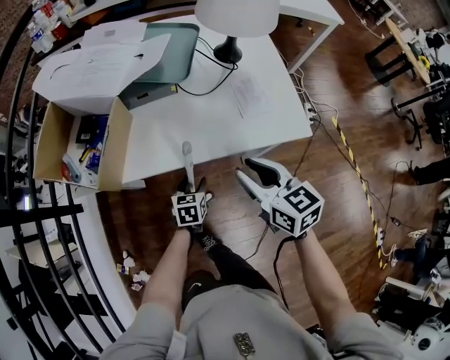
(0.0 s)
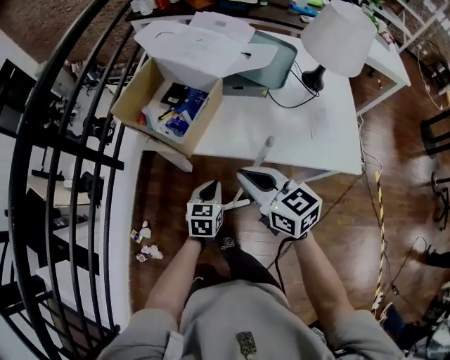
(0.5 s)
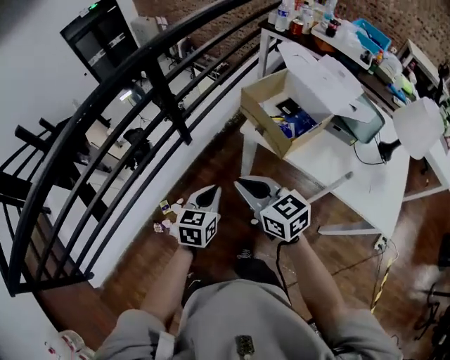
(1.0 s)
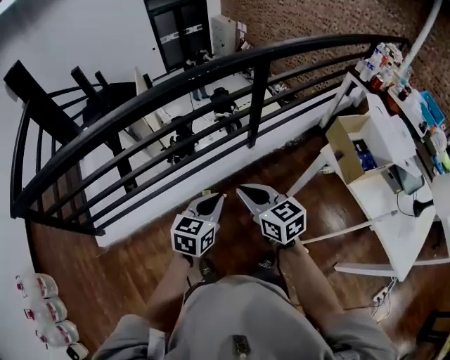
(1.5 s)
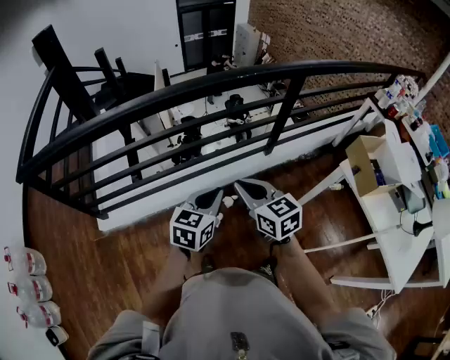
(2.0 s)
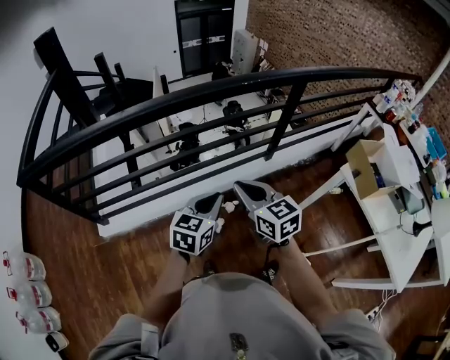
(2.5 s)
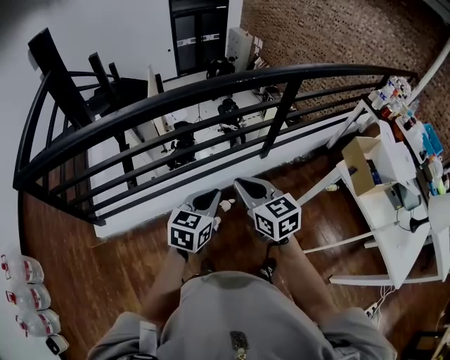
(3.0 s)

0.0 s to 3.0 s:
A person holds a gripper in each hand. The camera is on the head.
0.0 to 1.5 s: Both grippers are carried about 70 cm. The right gripper swivels about 70 degrees, and closes its fingers, while the left gripper changes its angle by about 60 degrees, and closes.
1.5 to 3.0 s: The grippers both shift to the left by about 15 cm.

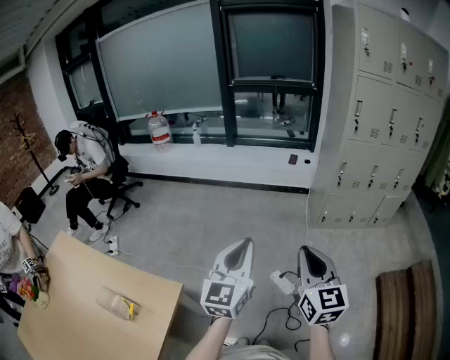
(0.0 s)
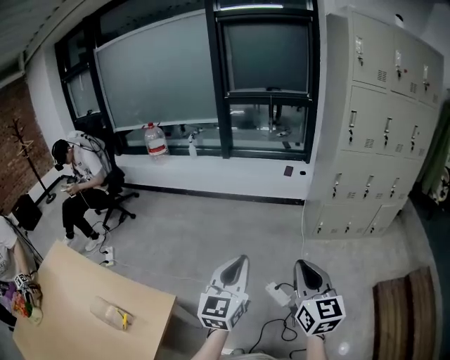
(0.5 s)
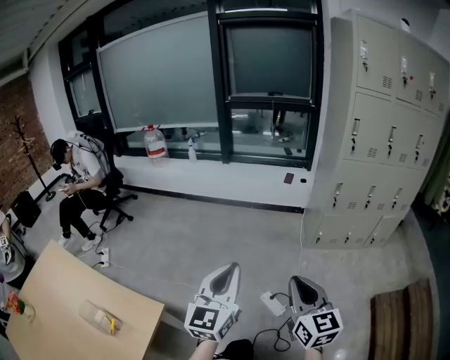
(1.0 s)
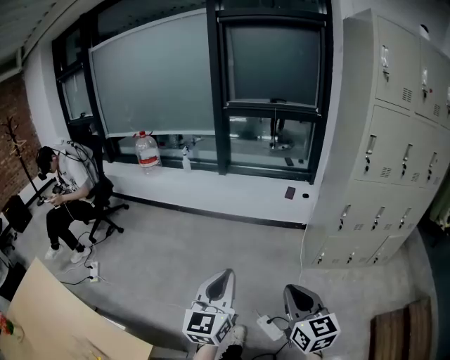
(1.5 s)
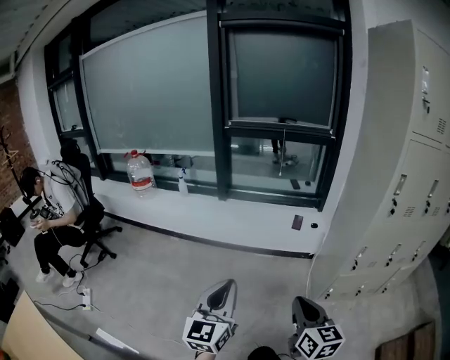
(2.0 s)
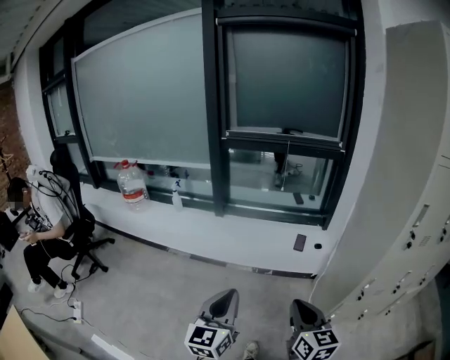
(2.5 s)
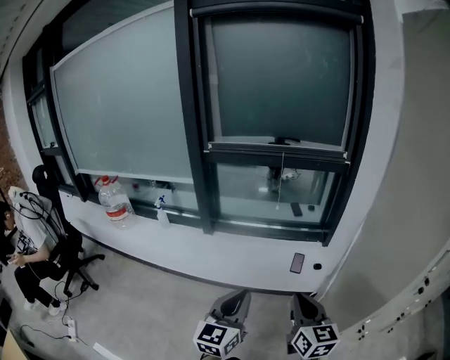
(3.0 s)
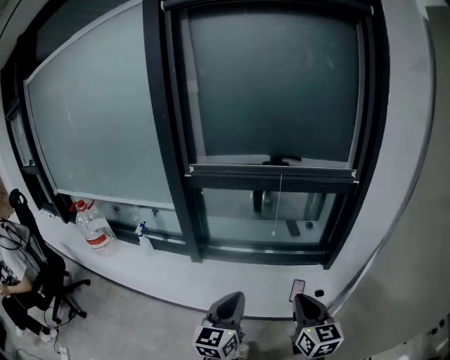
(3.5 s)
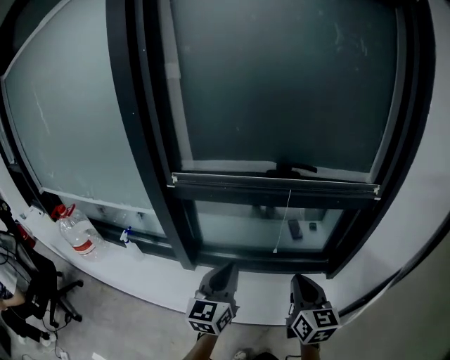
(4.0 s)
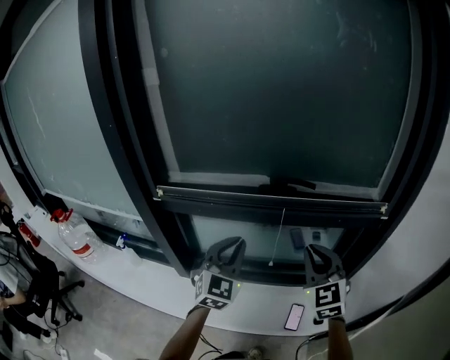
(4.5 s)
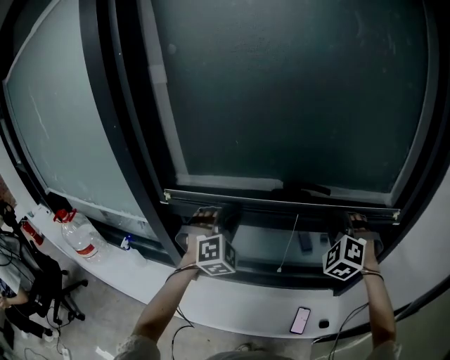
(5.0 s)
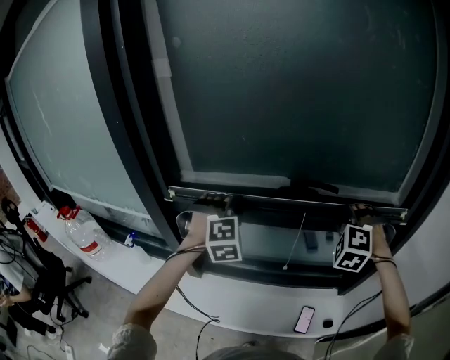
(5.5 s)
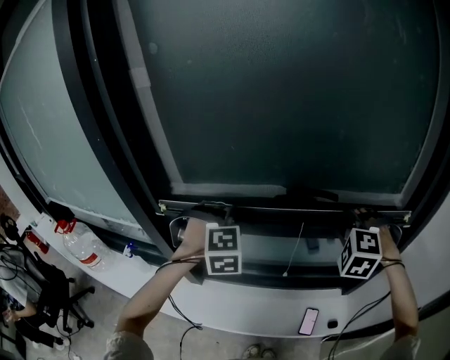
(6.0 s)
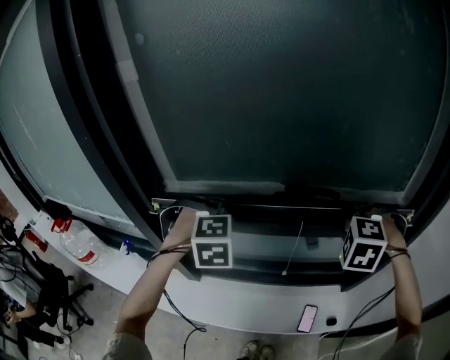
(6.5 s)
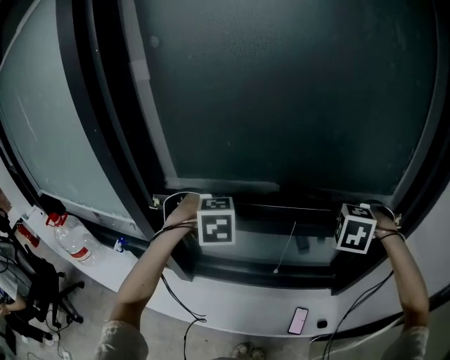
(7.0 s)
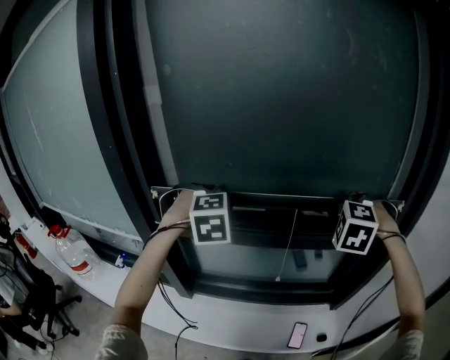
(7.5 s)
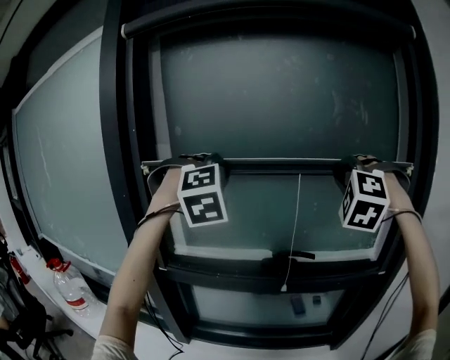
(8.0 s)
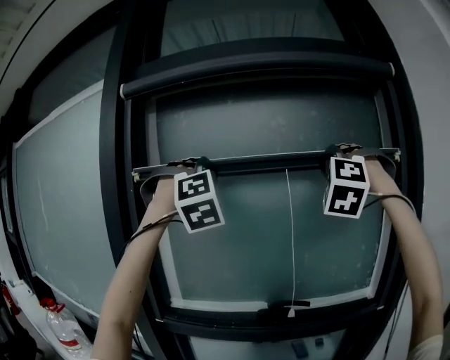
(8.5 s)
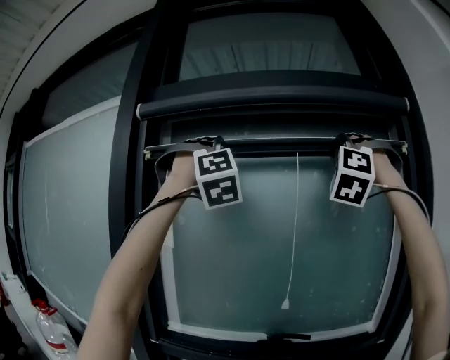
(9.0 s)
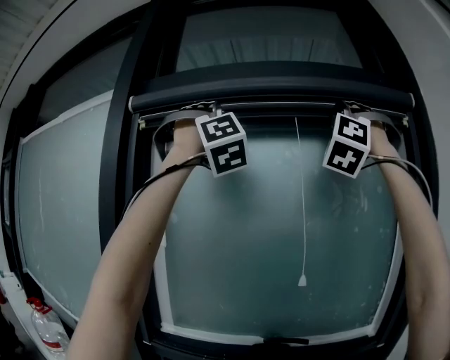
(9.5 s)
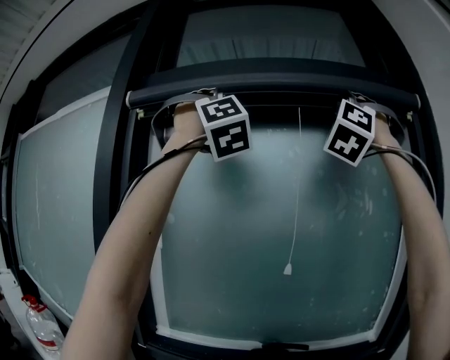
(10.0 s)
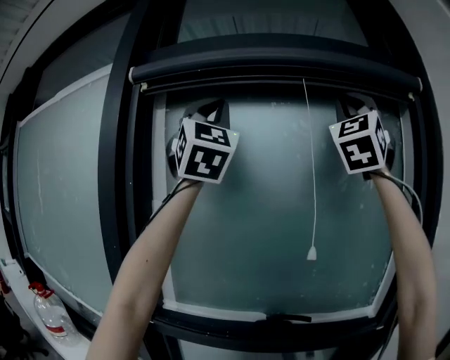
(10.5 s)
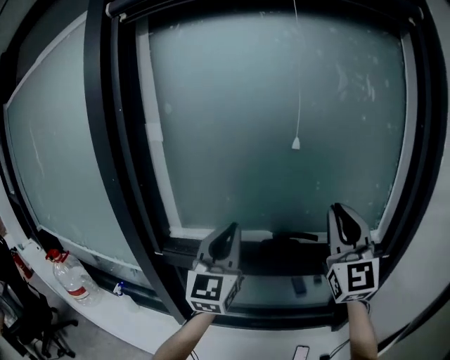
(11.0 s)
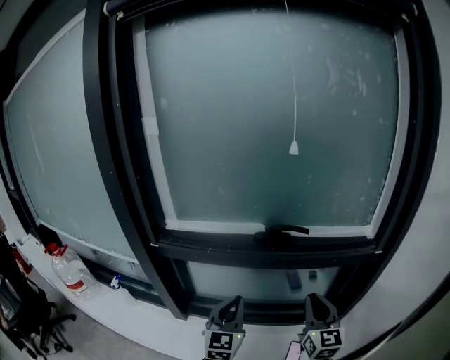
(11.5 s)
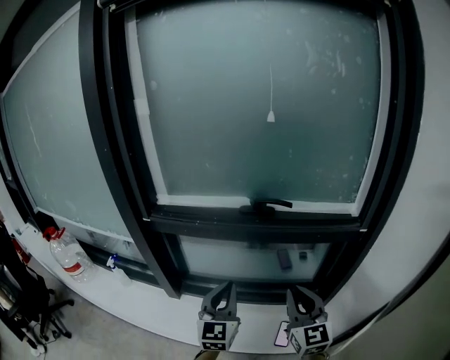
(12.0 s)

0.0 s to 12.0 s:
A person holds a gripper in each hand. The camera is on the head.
0.0 to 2.0 s: The pair of grippers is taken forward, some 40 cm.
2.0 to 4.0 s: Both grippers are carried forward, roughly 80 cm.
4.0 to 6.0 s: The two grippers go about 25 cm forward. The left gripper rotates around the line of its fingers by approximately 80 degrees, clockwise from behind; the right gripper twists some 80 degrees counterclockwise, seen from behind.
6.0 to 8.0 s: Both grippers travel together upward, about 35 cm. The left gripper turns by approximately 30 degrees, while the right gripper tips its fingers upward by approximately 30 degrees.
8.0 to 10.0 s: Both grippers move upward, some 40 cm. The left gripper points its fingers roughly 40 degrees further upward. The right gripper tilts its fingers roughly 40 degrees upward.
10.0 to 12.0 s: The two grippers go approximately 70 cm downward. The right gripper rolls clockwise, seen from behind, by roughly 80 degrees. The left gripper twists some 80 degrees counterclockwise, seen from behind.

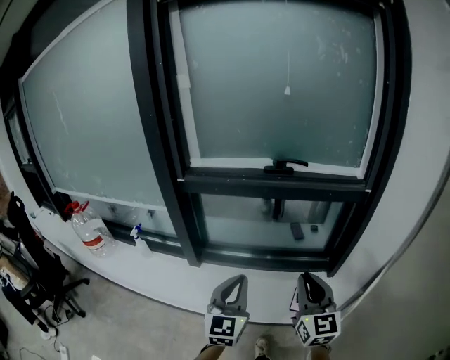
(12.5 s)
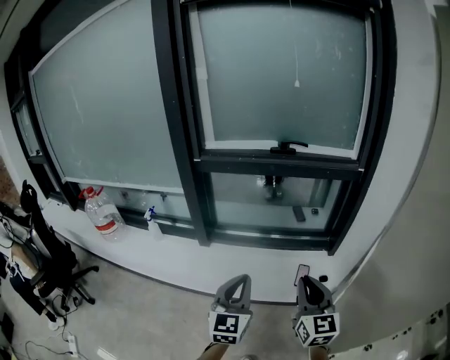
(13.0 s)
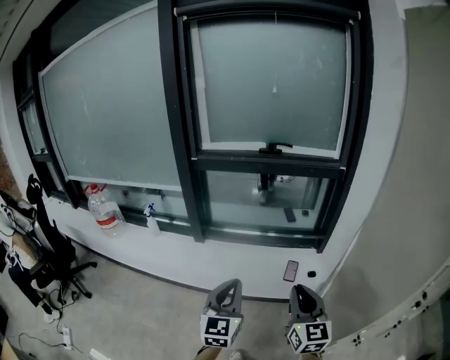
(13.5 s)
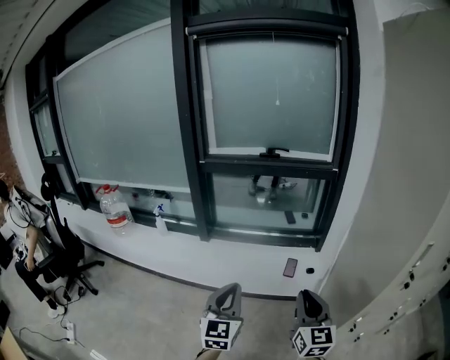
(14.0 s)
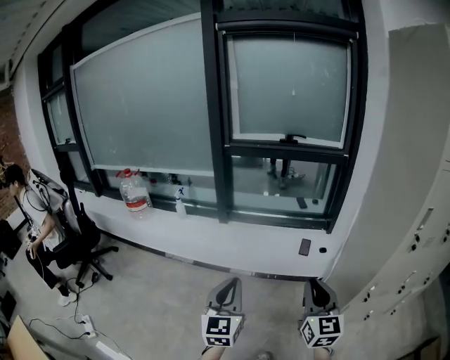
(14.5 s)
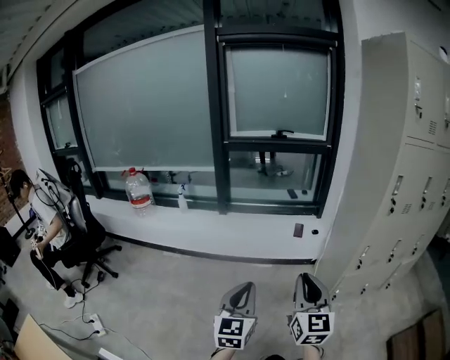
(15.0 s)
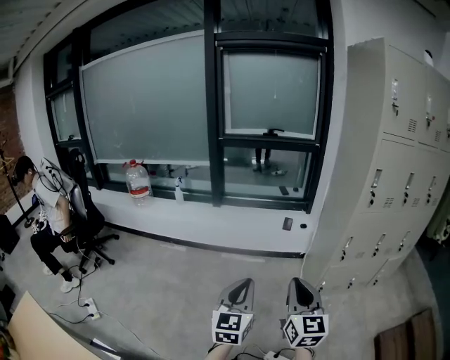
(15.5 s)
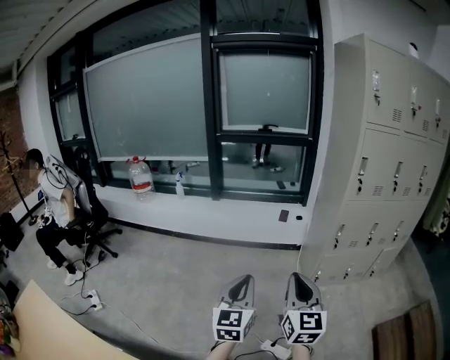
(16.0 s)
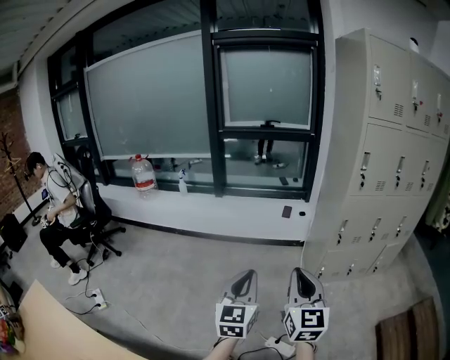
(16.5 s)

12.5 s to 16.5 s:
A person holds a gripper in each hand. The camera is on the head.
12.5 to 14.5 s: Both grippers are carried backward, about 50 cm.
14.5 to 16.5 s: The grippers both shift backward by about 40 cm.

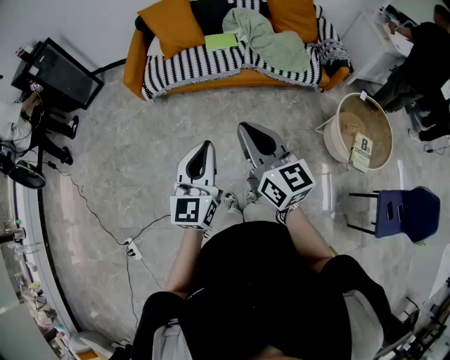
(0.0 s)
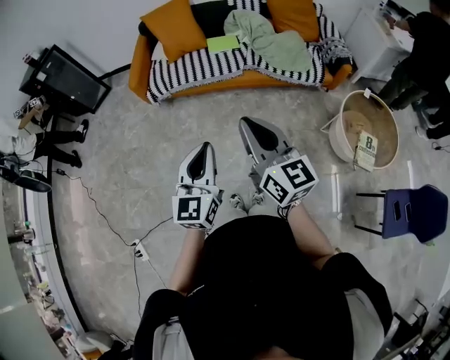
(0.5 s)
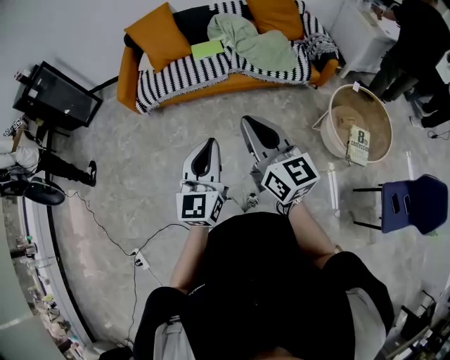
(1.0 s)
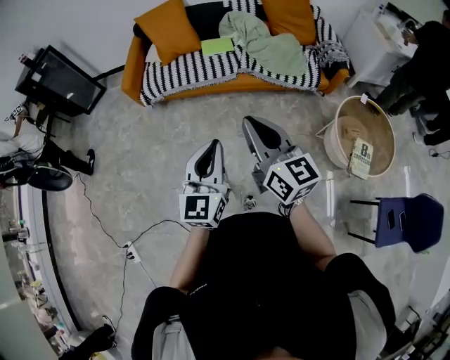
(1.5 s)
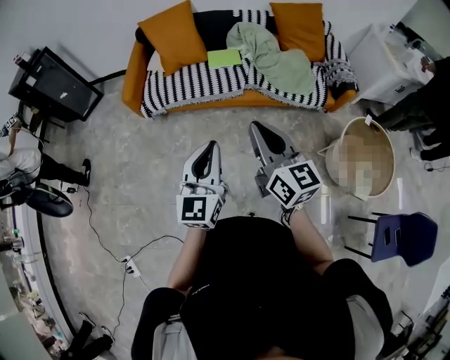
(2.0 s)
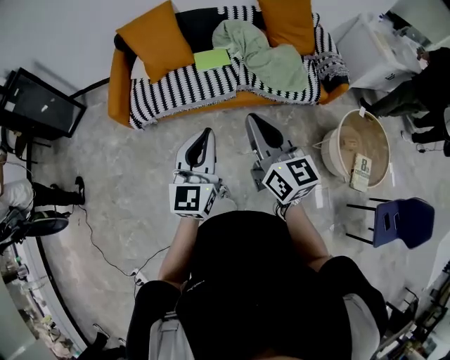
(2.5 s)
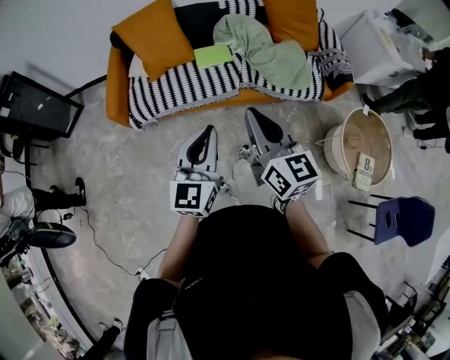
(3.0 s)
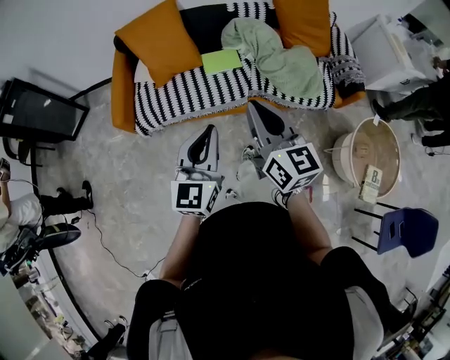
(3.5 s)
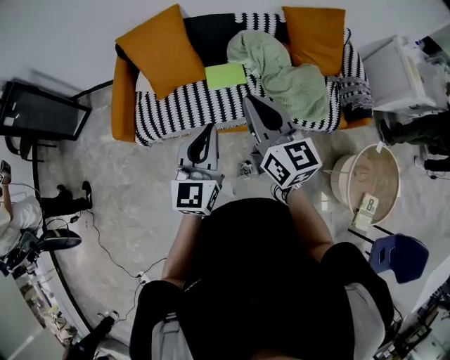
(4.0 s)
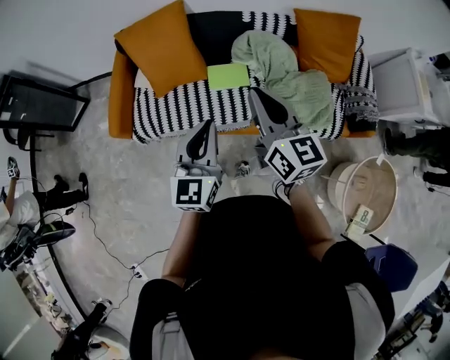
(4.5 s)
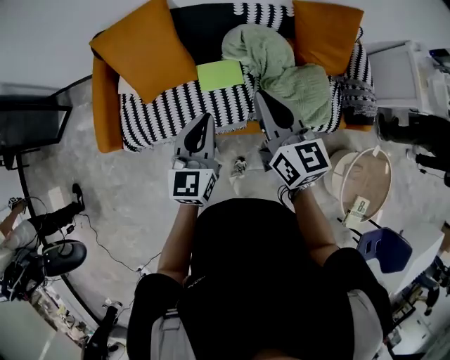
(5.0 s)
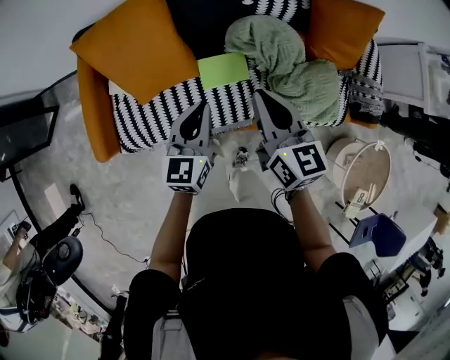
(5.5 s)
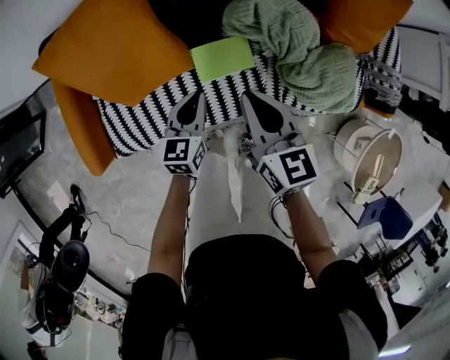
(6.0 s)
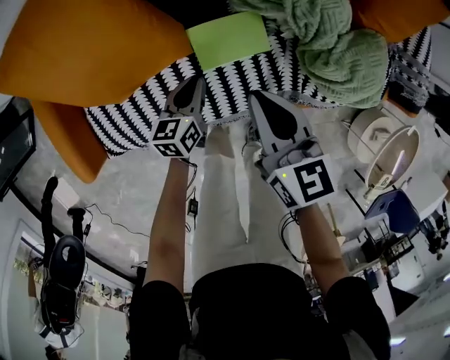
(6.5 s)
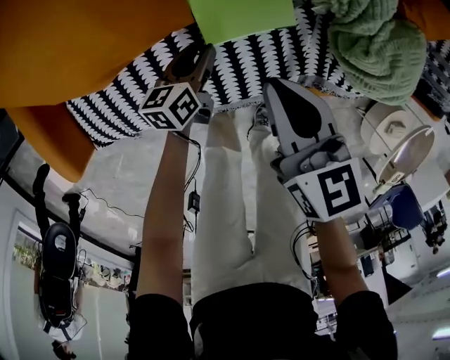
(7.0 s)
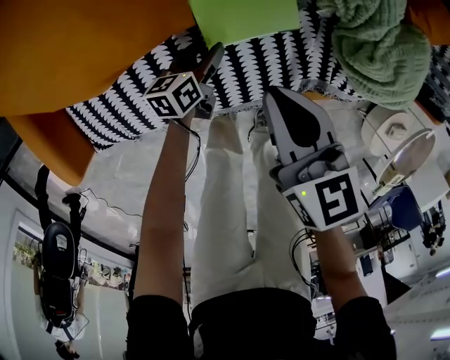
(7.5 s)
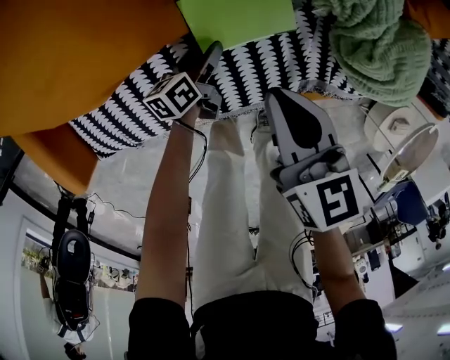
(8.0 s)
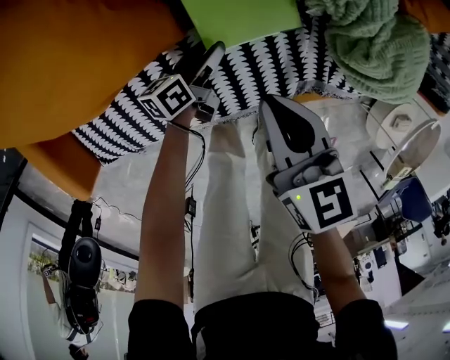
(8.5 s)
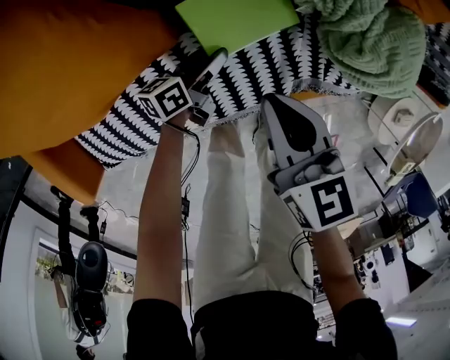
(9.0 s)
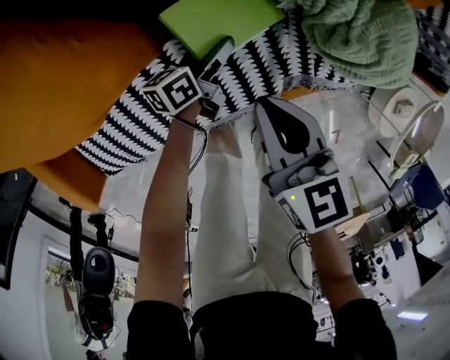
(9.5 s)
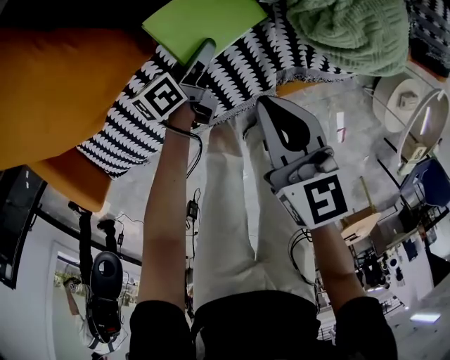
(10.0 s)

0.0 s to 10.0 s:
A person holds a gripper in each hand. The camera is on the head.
0.0 to 2.0 s: Both grippers travel together forward, some 15 cm.
2.0 to 4.0 s: The pair of grippers is taken forward, approximately 40 cm.
4.0 to 6.0 s: The two grippers go approximately 50 cm forward and downward. The right gripper changes its angle by some 30 degrees, while the left gripper rotates some 30 degrees.
6.0 to 8.0 s: The left gripper is displaced downward by approximately 35 cm, swivels about 40 degrees, and opens its fingers. The right gripper travels downward by some 25 cm.
8.0 to 10.0 s: The right gripper goes about 10 cm to the right. Meanwhile the left gripper travels to the right and upward by approximately 10 cm.
